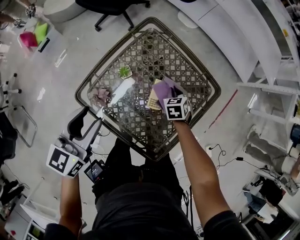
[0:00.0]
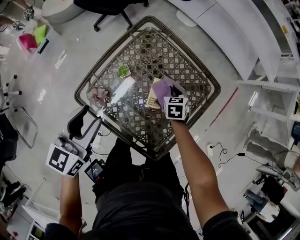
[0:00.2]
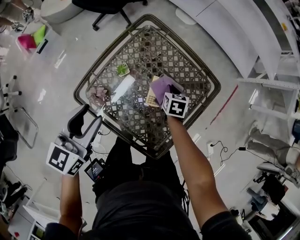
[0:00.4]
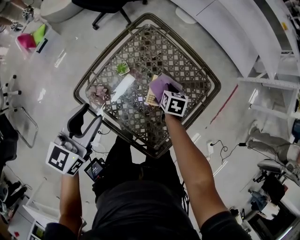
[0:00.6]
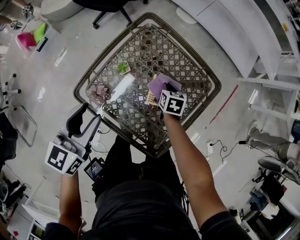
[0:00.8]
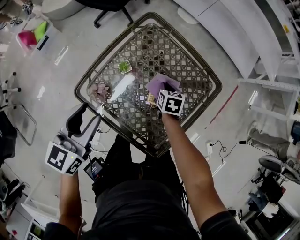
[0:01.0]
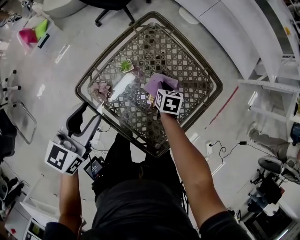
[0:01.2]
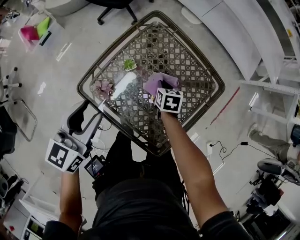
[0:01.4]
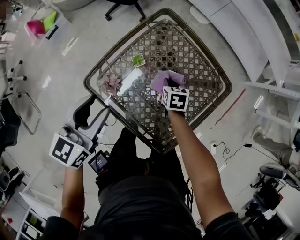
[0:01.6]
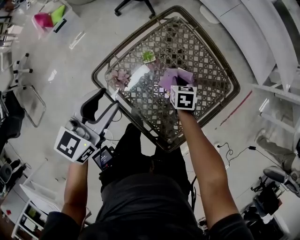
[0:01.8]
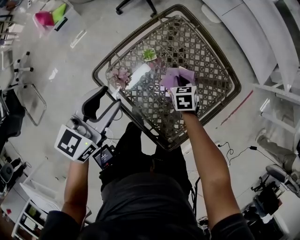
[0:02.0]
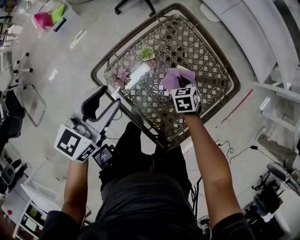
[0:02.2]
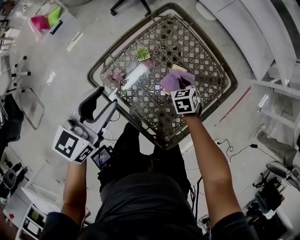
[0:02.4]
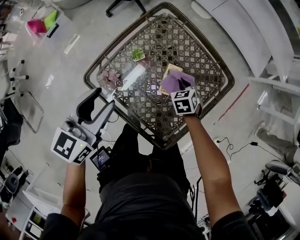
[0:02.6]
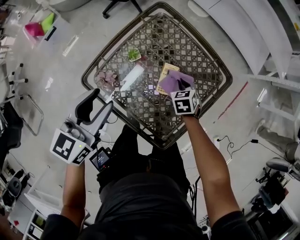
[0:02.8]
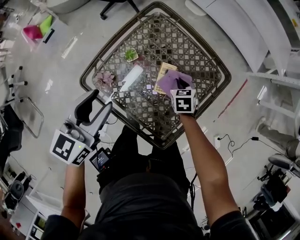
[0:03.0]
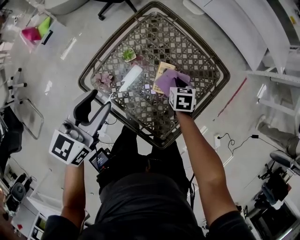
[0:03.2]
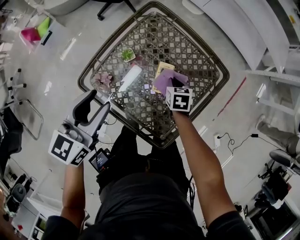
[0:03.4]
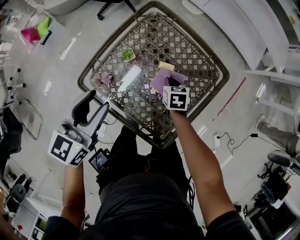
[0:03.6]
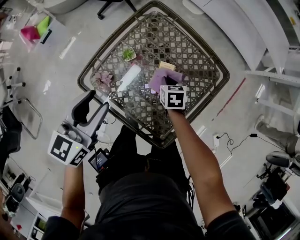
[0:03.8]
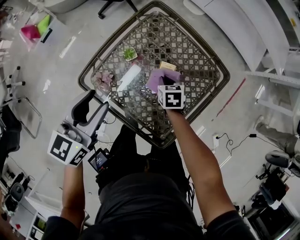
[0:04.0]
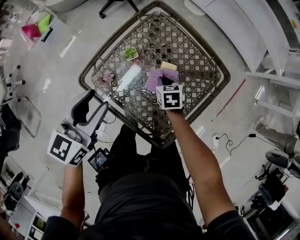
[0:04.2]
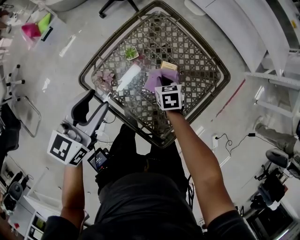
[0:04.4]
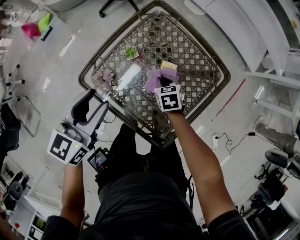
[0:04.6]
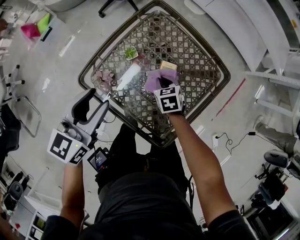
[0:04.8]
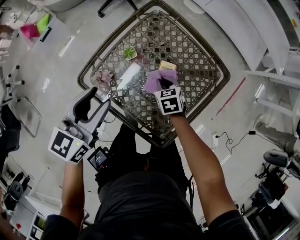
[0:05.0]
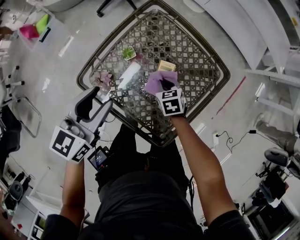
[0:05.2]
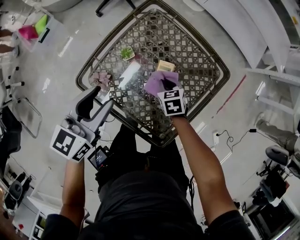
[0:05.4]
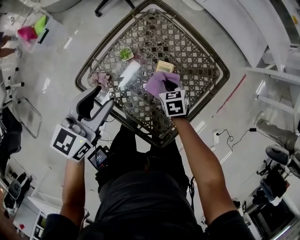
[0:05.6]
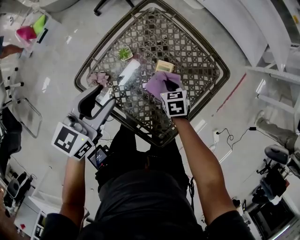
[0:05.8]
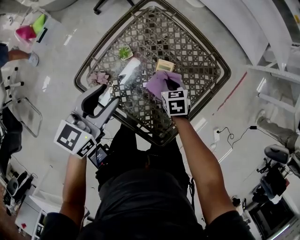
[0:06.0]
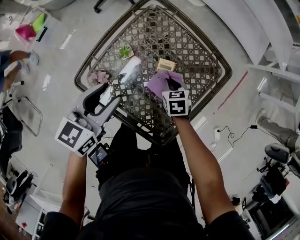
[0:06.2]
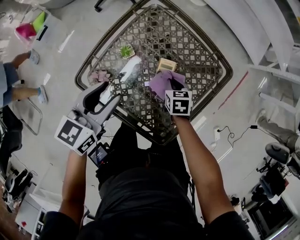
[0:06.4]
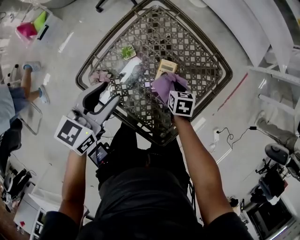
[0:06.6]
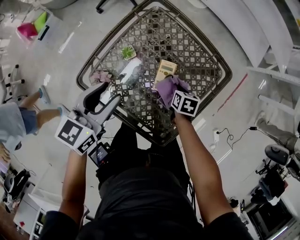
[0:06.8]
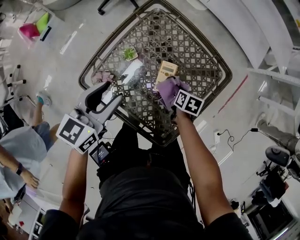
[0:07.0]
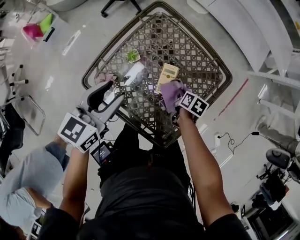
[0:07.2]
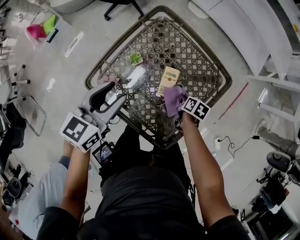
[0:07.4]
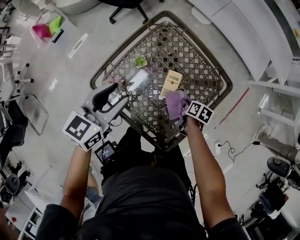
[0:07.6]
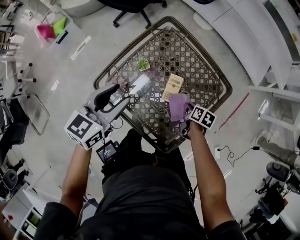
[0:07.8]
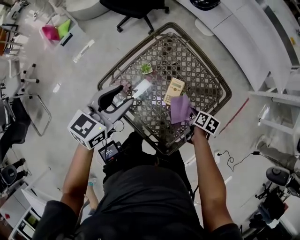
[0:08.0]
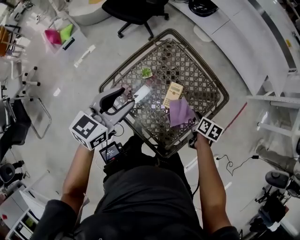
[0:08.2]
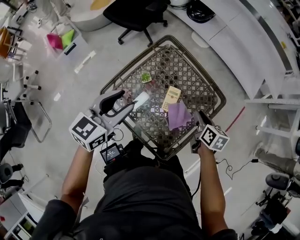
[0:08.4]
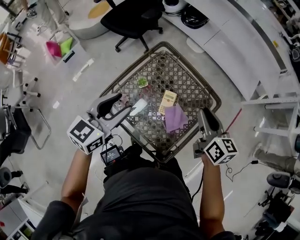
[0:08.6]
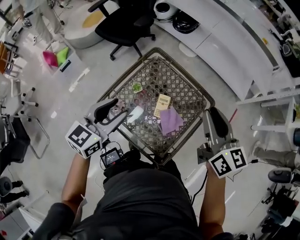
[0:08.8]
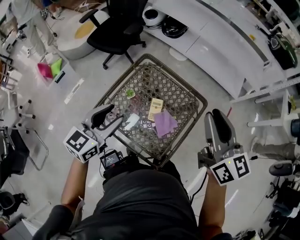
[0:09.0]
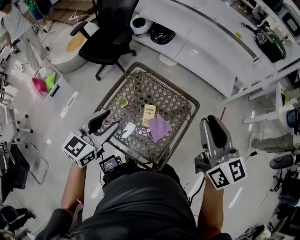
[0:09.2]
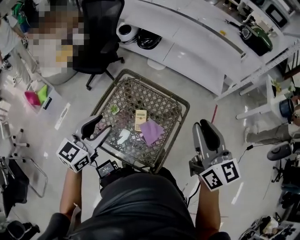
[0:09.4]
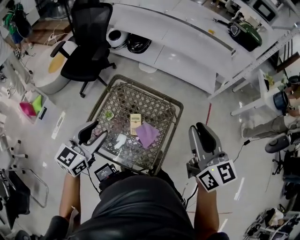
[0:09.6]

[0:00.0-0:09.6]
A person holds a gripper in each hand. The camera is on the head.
0:00.0 to 0:01.6: The right gripper heads to the left, covering about 10 cm, and rotates approximately 20 degrees.
0:01.6 to 0:03.2: The right gripper shifts roughly 10 cm to the right.
0:03.2 to 0:04.8: The right gripper shifts roughly 10 cm to the left.
0:04.8 to 0:06.4: The left gripper shifts by approximately 5 cm, while the right gripper is displaced to the right by some 5 cm.
0:06.4 to 0:08.0: The left gripper goes some 10 cm upward; the right gripper moves to the right, approximately 10 cm, and rotates about 30 degrees.
0:08.0 to 0:09.6: The left gripper heads upward and to the right, covering approximately 15 cm, while the right gripper is displaced upward by about 50 cm, and angles its fingers upward, by approximately 50 degrees.

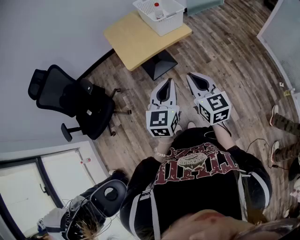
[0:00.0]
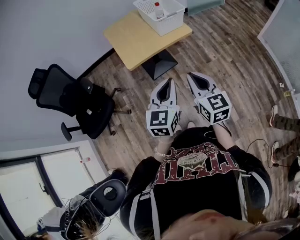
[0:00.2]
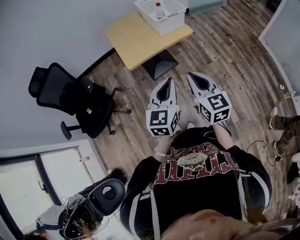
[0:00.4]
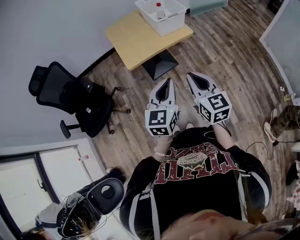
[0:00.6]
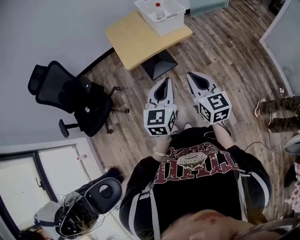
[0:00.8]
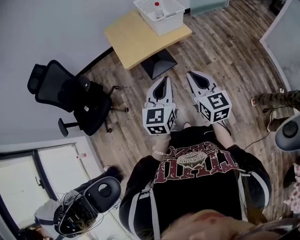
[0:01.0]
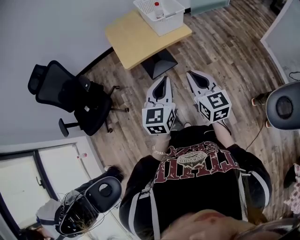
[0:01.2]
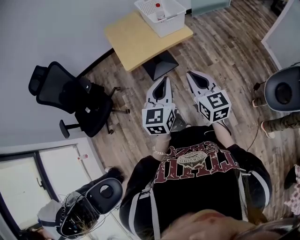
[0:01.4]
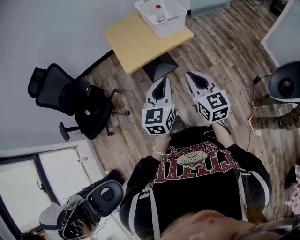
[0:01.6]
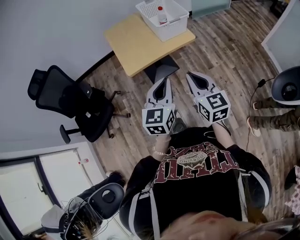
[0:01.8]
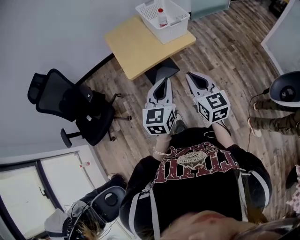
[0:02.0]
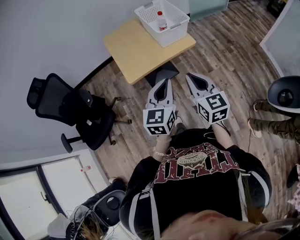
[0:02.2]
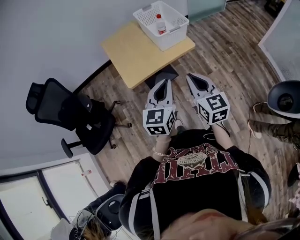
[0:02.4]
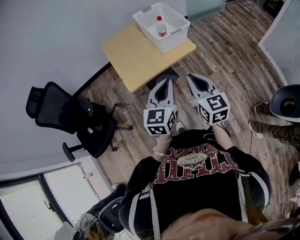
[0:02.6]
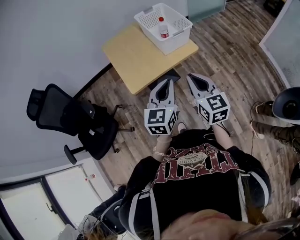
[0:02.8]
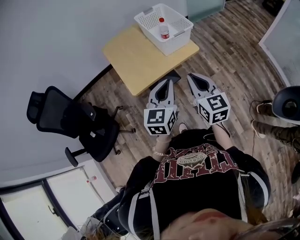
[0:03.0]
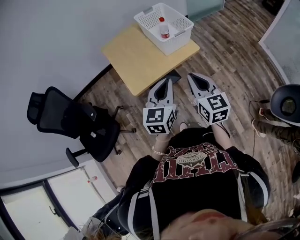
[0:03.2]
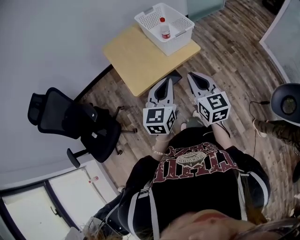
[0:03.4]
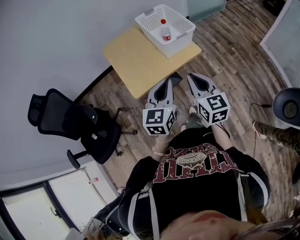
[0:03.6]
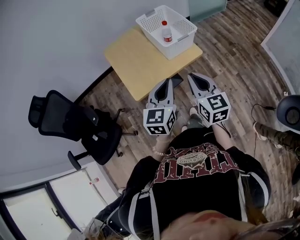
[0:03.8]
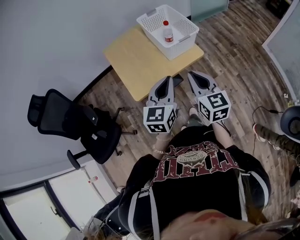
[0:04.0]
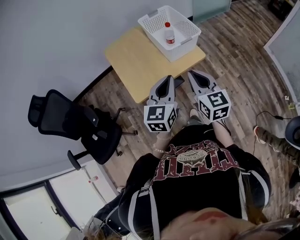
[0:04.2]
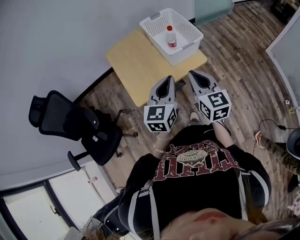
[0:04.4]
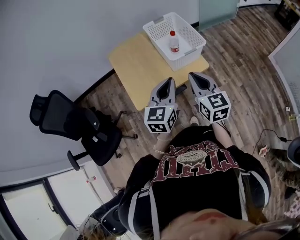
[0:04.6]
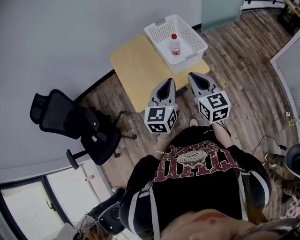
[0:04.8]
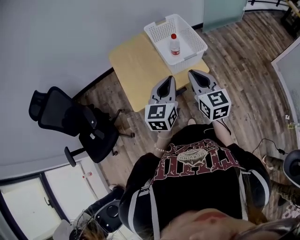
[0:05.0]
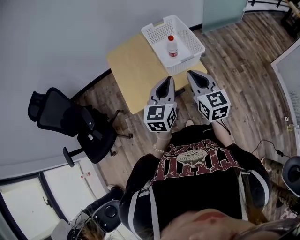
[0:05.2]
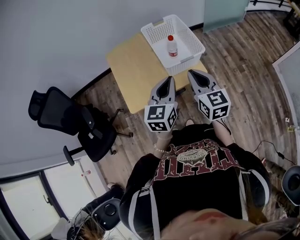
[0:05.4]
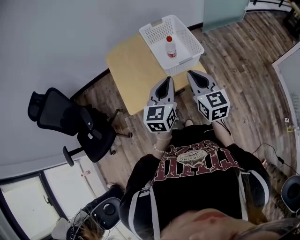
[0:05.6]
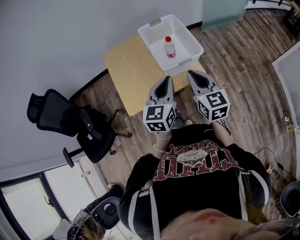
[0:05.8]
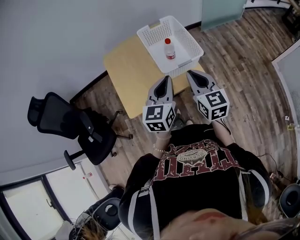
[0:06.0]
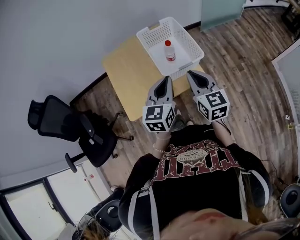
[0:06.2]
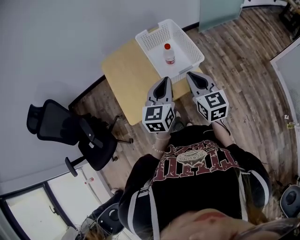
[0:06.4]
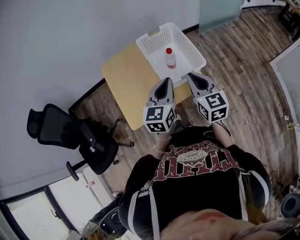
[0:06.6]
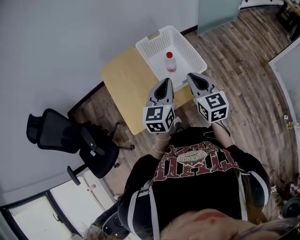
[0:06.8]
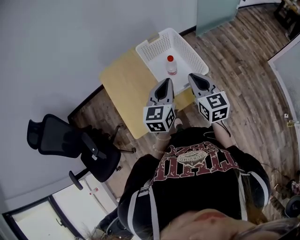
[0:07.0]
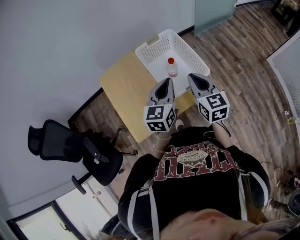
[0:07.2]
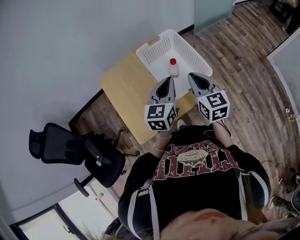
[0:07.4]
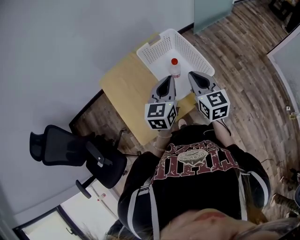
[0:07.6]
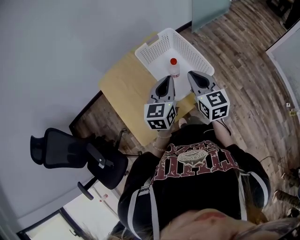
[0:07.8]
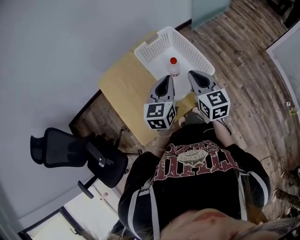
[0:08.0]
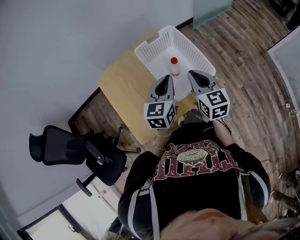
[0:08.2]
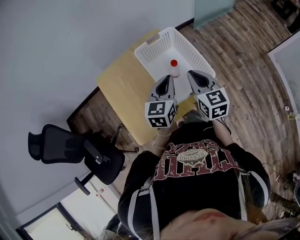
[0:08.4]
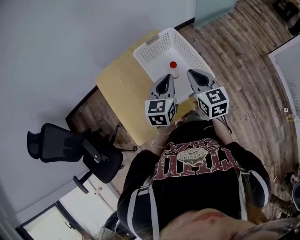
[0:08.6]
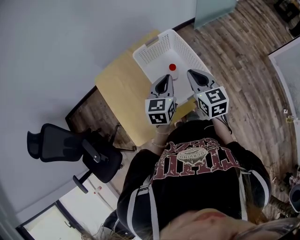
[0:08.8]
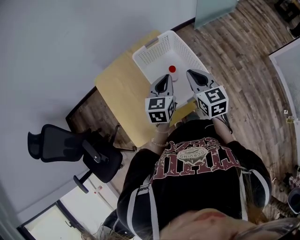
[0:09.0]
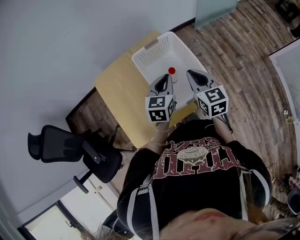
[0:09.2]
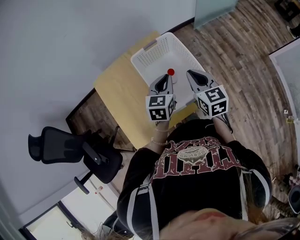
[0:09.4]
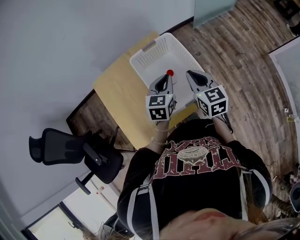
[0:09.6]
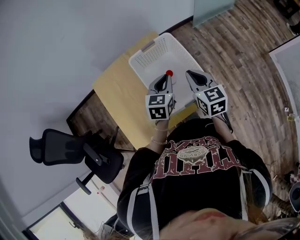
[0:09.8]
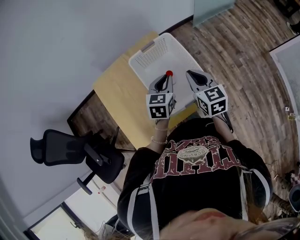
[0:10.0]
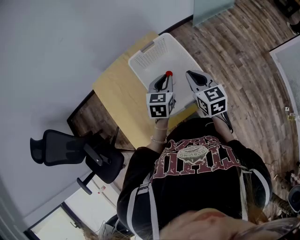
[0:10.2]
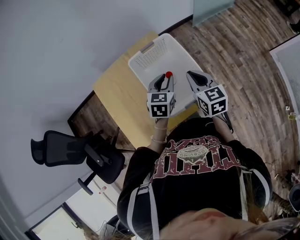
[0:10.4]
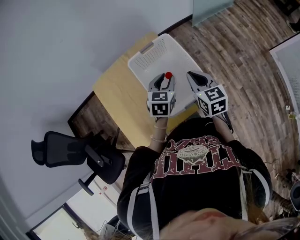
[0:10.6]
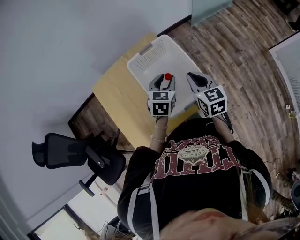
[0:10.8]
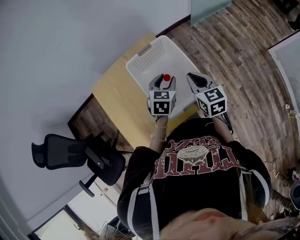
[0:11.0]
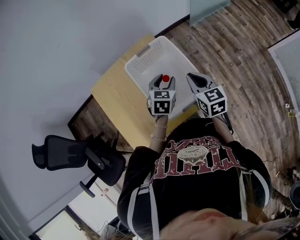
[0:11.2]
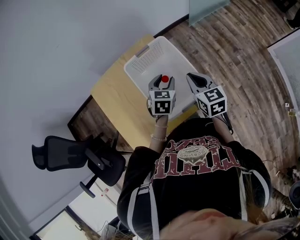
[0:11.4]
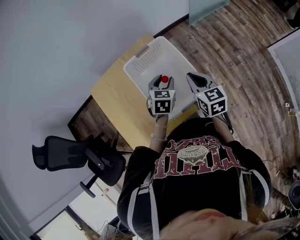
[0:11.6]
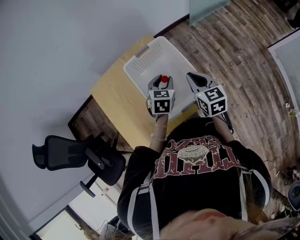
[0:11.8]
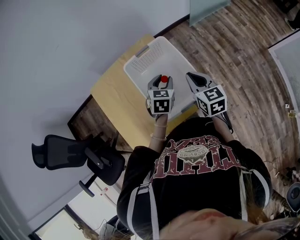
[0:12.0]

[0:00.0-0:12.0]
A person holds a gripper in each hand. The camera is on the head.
0:00.0 to 0:01.6: The two grippers go about 5 cm forward.
0:01.6 to 0:03.0: The two grippers go about 15 cm forward.
0:03.0 to 0:04.4: The two grippers go about 10 cm forward.
0:04.4 to 0:06.0: The two grippers go approximately 15 cm forward and to the right.
0:06.0 to 0:07.6: Both grippers travel together forward, some 15 cm.
0:07.6 to 0:09.0: The right gripper shifts some 5 cm forward, while the left gripper moves forward and downward, roughly 10 cm.
0:09.0 to 0:10.4: The left gripper ends up some 5 cm from where it was.
0:10.4 to 0:12.0: The grippers move only a little.

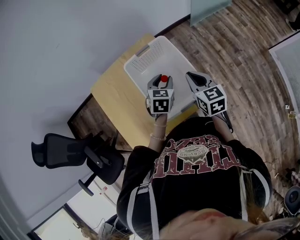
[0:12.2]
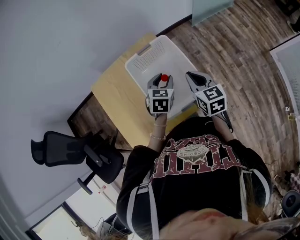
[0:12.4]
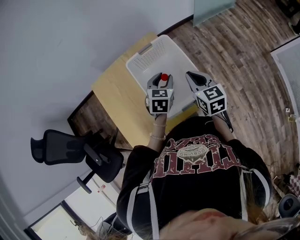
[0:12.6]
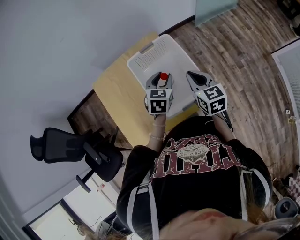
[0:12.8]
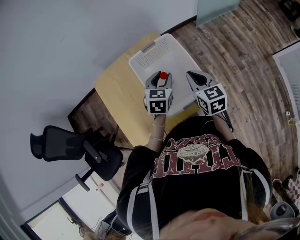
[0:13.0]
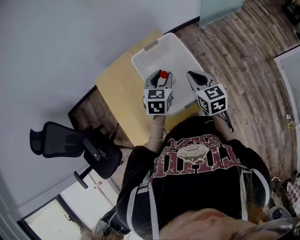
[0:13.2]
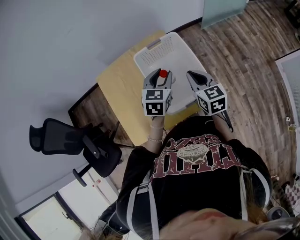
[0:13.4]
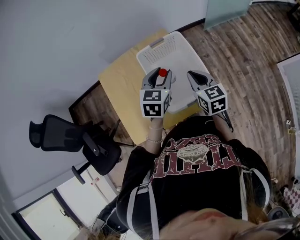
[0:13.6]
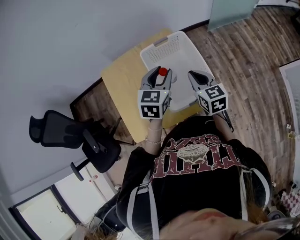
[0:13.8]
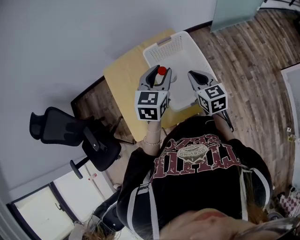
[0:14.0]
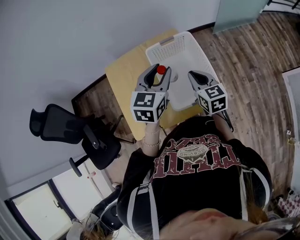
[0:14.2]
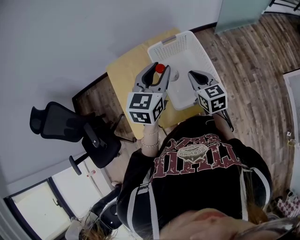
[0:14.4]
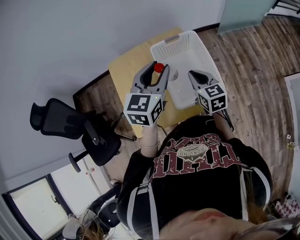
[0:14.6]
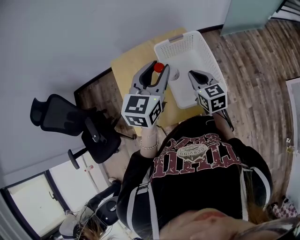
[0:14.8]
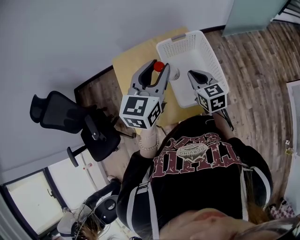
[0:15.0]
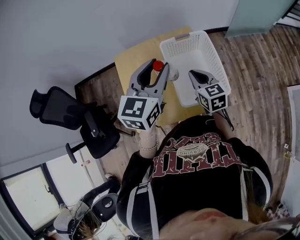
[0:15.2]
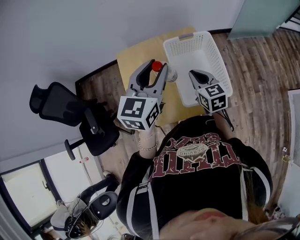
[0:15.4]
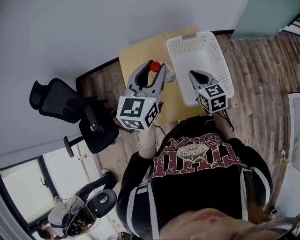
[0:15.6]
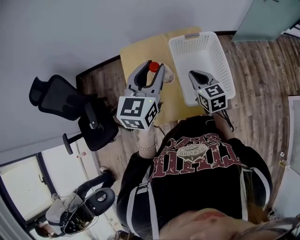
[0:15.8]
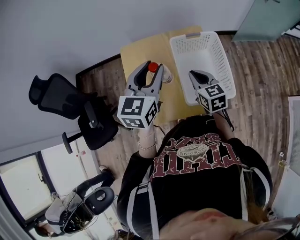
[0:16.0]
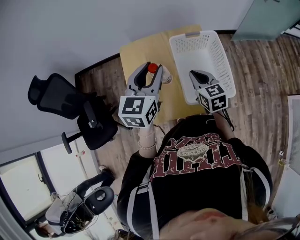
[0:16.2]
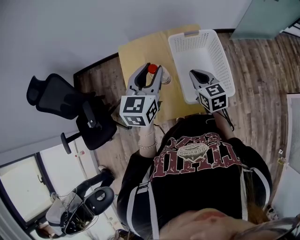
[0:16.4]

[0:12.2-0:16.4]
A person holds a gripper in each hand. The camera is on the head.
0:12.2 to 0:13.6: The left gripper is displaced upward by about 10 cm.
0:13.6 to 0:15.0: The left gripper shifts some 15 cm upward and to the left. Meanwhile the right gripper travels to the left by about 5 cm.
0:15.0 to 0:16.4: The left gripper goes approximately 10 cm to the left.
